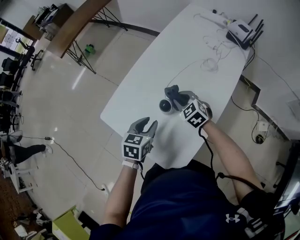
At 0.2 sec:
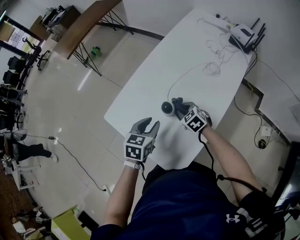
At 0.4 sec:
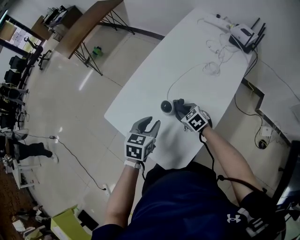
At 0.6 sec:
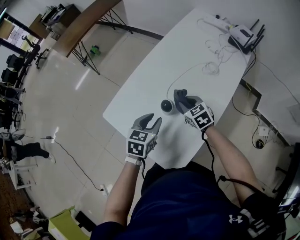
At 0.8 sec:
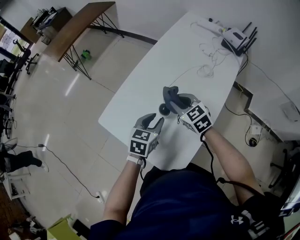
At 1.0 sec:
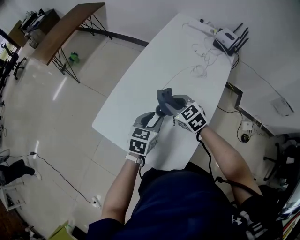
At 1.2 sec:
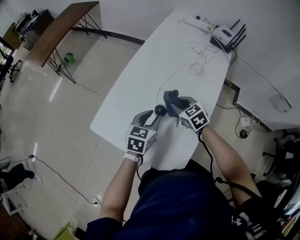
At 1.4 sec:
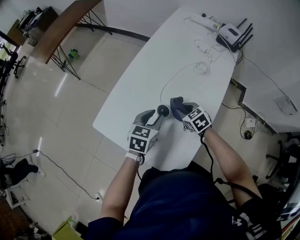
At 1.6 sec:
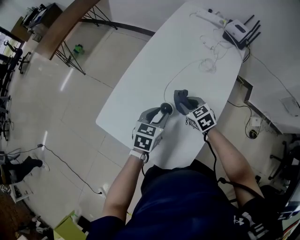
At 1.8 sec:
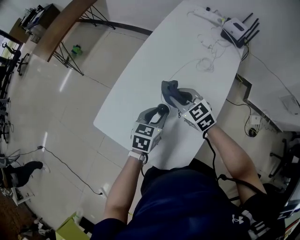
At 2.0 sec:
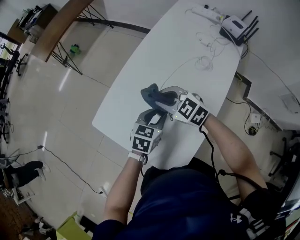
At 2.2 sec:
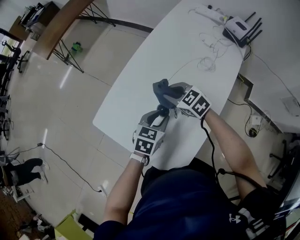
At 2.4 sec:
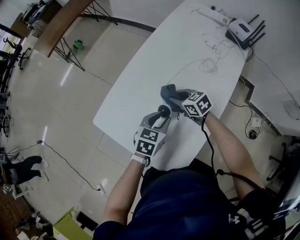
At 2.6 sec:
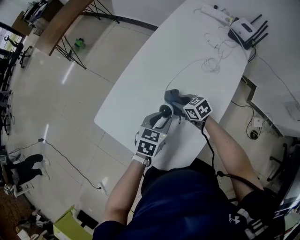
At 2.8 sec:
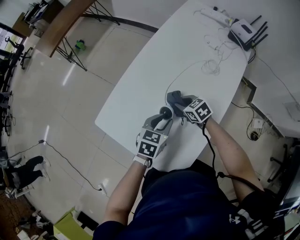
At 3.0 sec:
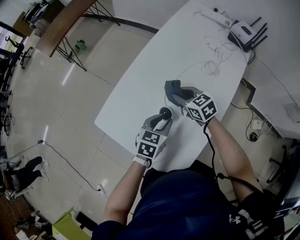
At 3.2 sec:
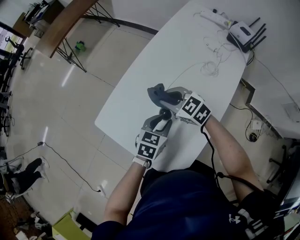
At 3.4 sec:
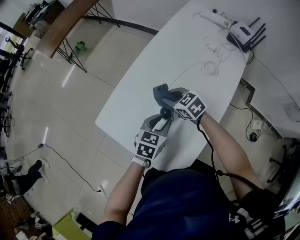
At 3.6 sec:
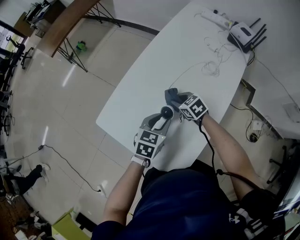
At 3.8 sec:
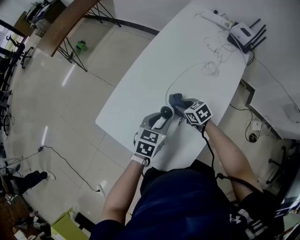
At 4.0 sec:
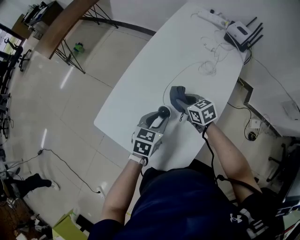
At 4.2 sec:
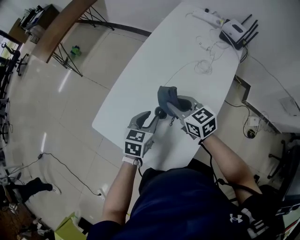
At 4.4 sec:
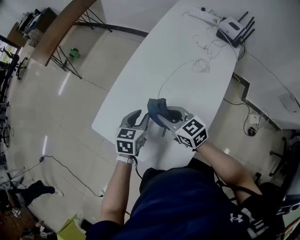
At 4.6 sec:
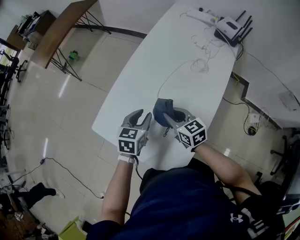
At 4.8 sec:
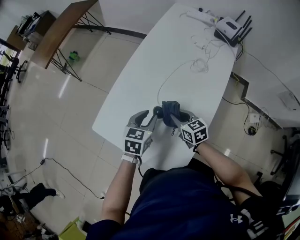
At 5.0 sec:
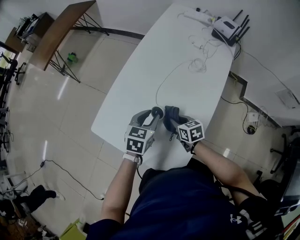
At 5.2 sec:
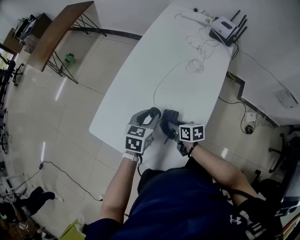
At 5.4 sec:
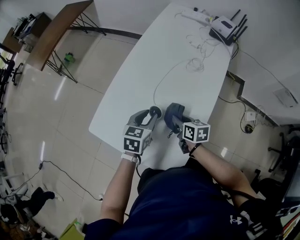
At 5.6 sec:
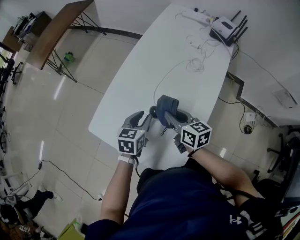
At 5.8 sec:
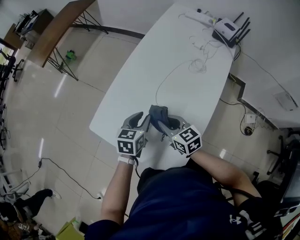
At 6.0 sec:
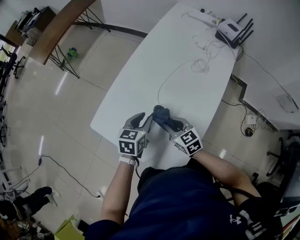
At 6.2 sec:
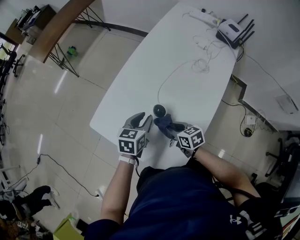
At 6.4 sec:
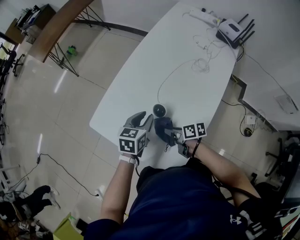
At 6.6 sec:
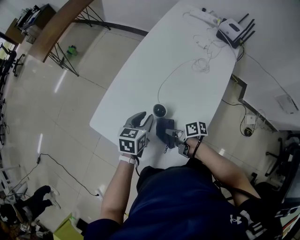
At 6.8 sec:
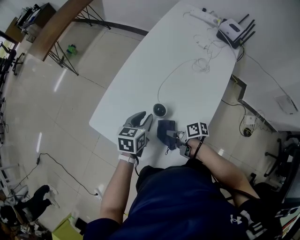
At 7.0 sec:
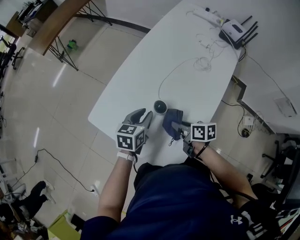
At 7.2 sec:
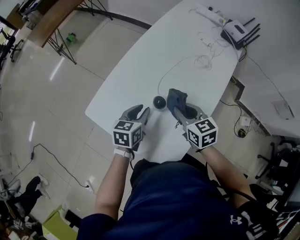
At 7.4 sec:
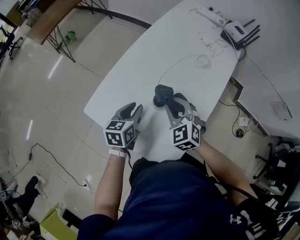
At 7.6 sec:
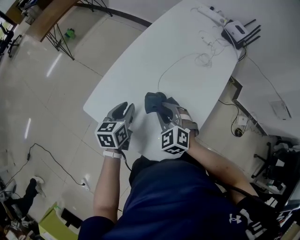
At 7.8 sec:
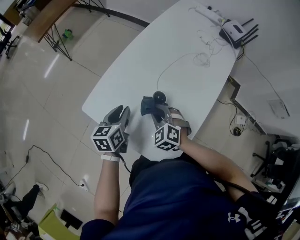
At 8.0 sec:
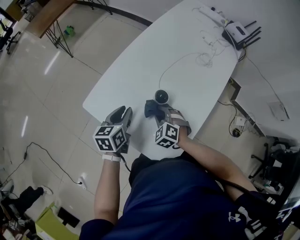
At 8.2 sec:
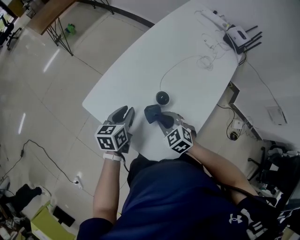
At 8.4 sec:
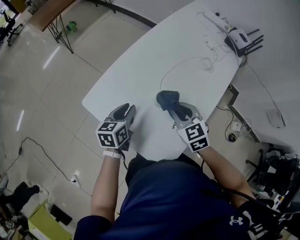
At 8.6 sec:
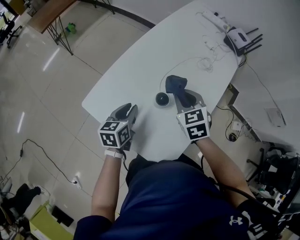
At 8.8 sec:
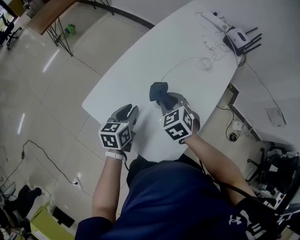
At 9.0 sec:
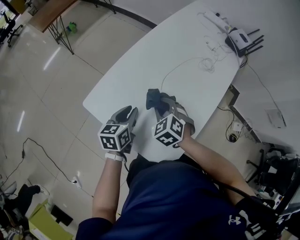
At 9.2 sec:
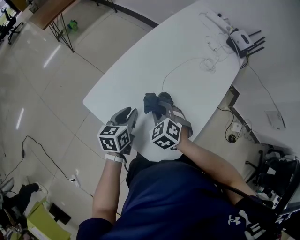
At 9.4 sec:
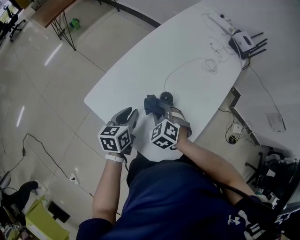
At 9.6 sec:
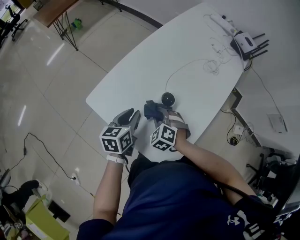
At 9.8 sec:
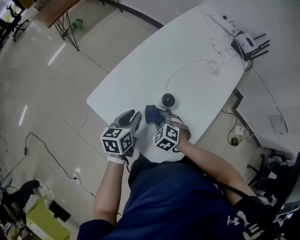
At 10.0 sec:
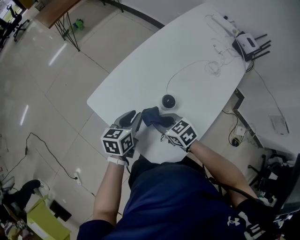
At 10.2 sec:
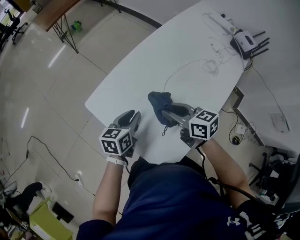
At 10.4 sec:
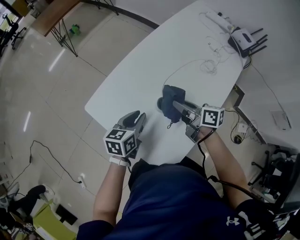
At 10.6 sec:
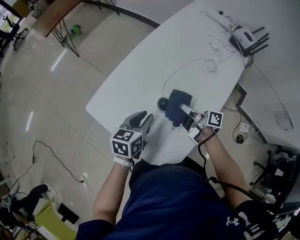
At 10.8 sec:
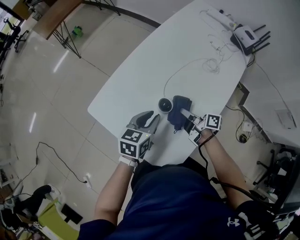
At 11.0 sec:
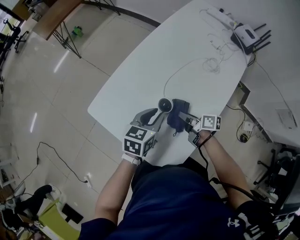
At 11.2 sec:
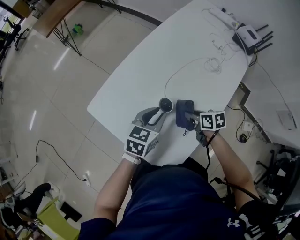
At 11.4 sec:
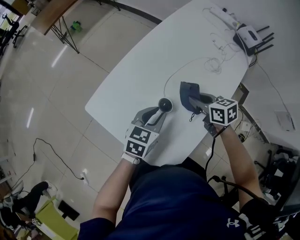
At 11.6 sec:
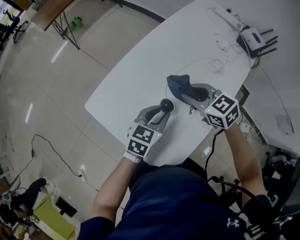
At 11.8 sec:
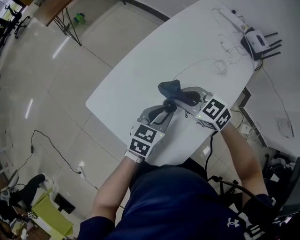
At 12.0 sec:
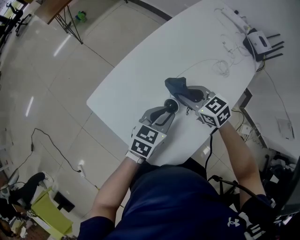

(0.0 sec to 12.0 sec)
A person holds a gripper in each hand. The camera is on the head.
0.0 sec - 1.6 sec: The right gripper goes up and down, some 15 cm each way, reversing 2 times. Meanwhile the left gripper goes approximately 5 cm forward.
1.6 sec - 3.0 sec: The right gripper moves up and down over roughly 15 cm, changing direction 2 times.
3.0 sec - 4.4 sec: The right gripper swings up and down, approximately 15 cm each way, with 2 reversals. Meanwhile the left gripper is displaced to the left by roughly 5 cm.
4.4 sec - 6.0 sec: The right gripper goes up and down, some 15 cm each way, reversing 2 times.
6.0 sec - 7.6 sec: The right gripper heads upward, covering about 5 cm, and turns by about 40 degrees. The left gripper heads to the left, covering some 10 cm.
7.6 sec - 9.0 sec: The right gripper moves up and down over about 15 cm, changing direction 2 times.
9.0 sec - 10.4 sec: The right gripper moves to the right, approximately 10 cm, reaches approximately 10 cm downward, then returns, and rotates around the line of its fingers by roughly 70 degrees, clockwise from behind.
10.4 sec - 12.0 sec: The right gripper swings up and down, some 15 cm each way, with 2 reversals, and rolls counterclockwise, seen from behind, by roughly 50 degrees. Meanwhile the left gripper heads to the right, covering roughly 10 cm.

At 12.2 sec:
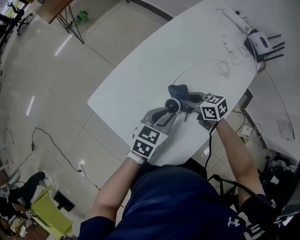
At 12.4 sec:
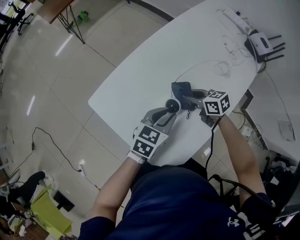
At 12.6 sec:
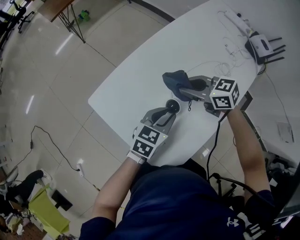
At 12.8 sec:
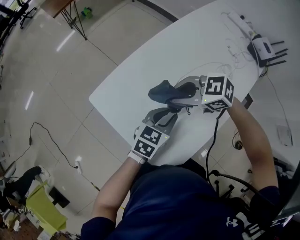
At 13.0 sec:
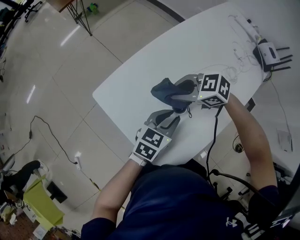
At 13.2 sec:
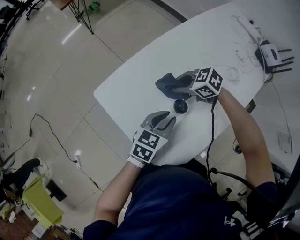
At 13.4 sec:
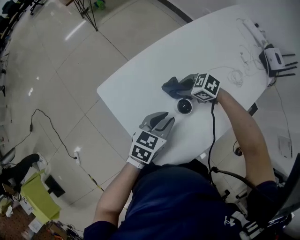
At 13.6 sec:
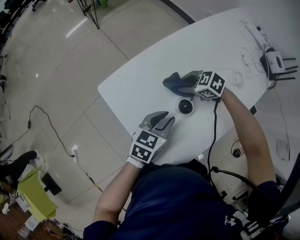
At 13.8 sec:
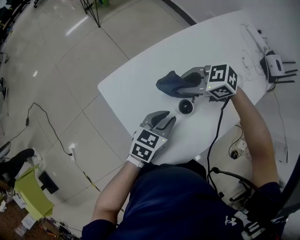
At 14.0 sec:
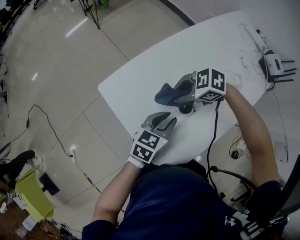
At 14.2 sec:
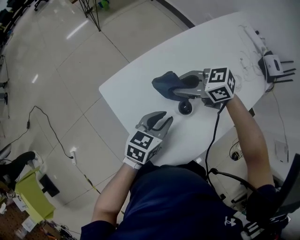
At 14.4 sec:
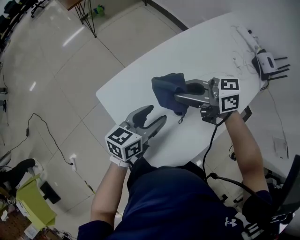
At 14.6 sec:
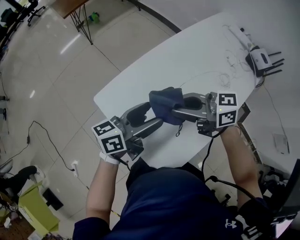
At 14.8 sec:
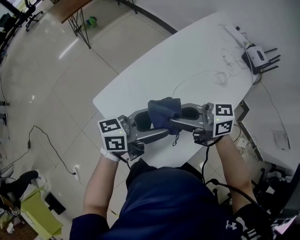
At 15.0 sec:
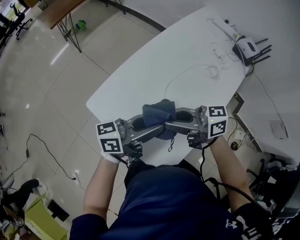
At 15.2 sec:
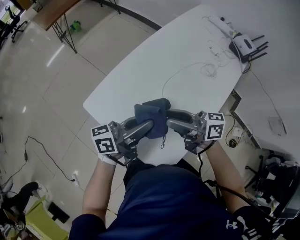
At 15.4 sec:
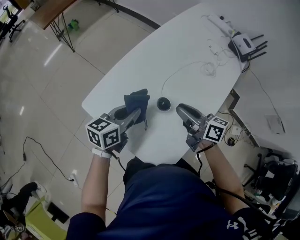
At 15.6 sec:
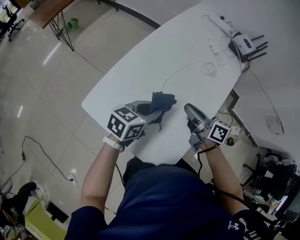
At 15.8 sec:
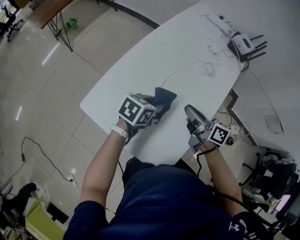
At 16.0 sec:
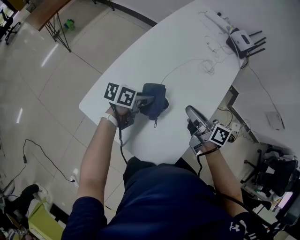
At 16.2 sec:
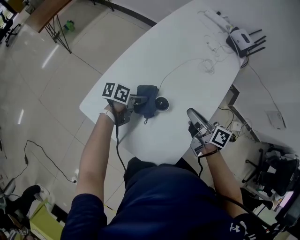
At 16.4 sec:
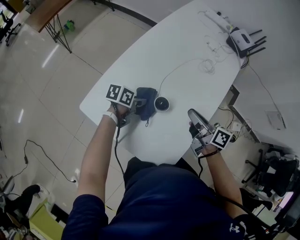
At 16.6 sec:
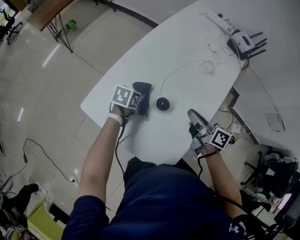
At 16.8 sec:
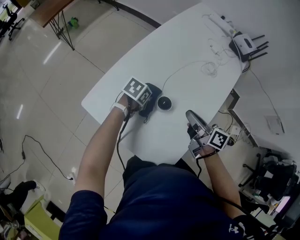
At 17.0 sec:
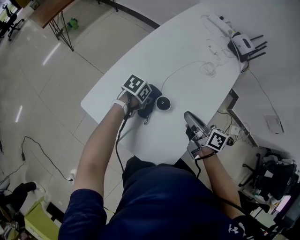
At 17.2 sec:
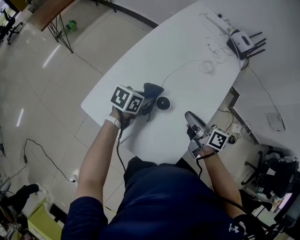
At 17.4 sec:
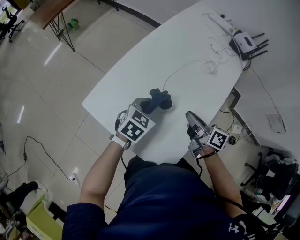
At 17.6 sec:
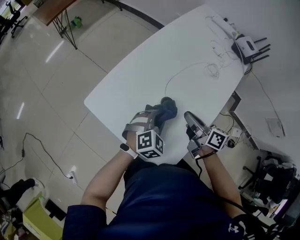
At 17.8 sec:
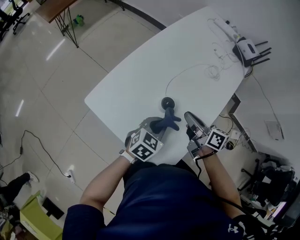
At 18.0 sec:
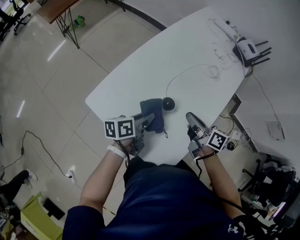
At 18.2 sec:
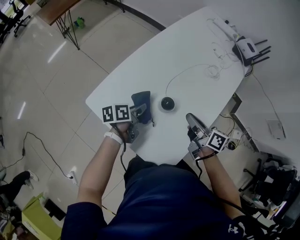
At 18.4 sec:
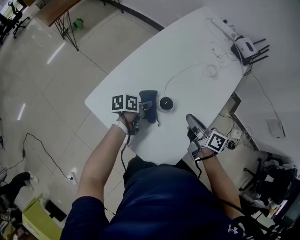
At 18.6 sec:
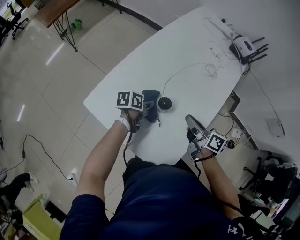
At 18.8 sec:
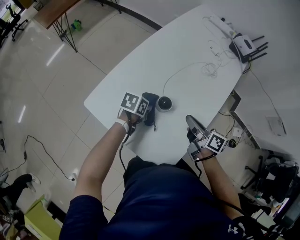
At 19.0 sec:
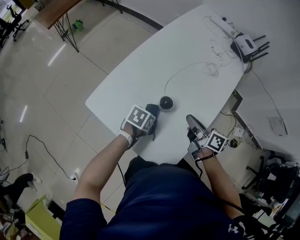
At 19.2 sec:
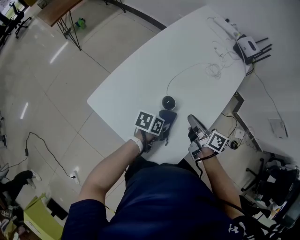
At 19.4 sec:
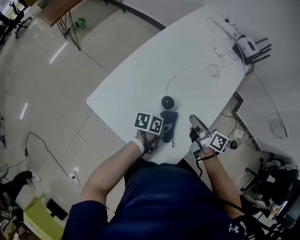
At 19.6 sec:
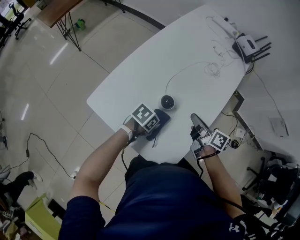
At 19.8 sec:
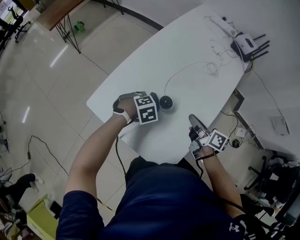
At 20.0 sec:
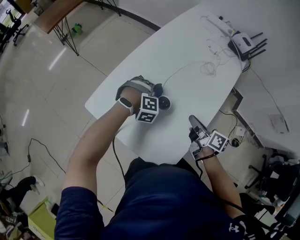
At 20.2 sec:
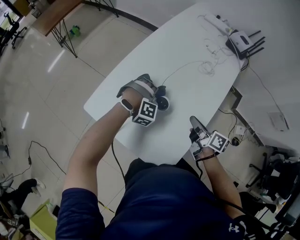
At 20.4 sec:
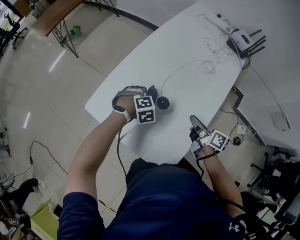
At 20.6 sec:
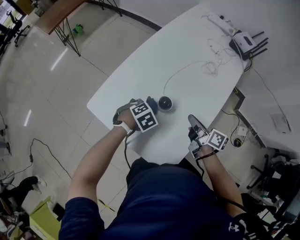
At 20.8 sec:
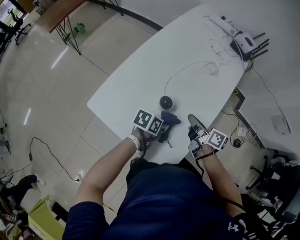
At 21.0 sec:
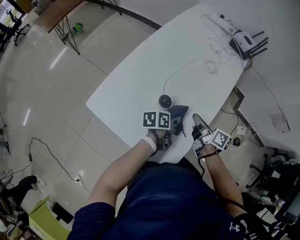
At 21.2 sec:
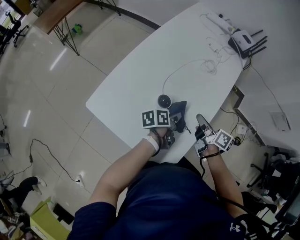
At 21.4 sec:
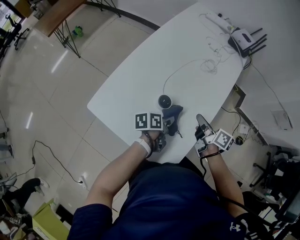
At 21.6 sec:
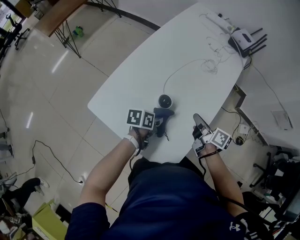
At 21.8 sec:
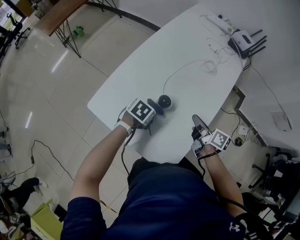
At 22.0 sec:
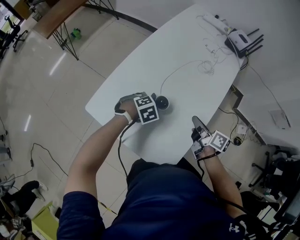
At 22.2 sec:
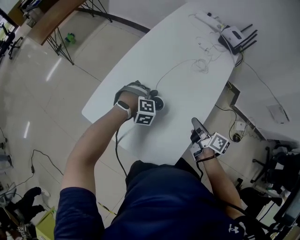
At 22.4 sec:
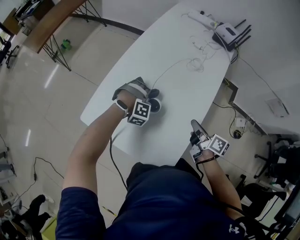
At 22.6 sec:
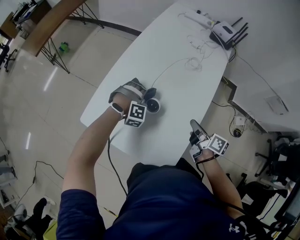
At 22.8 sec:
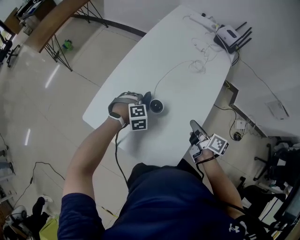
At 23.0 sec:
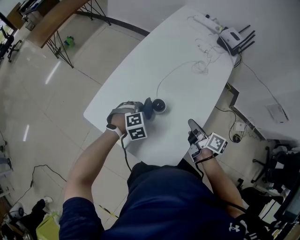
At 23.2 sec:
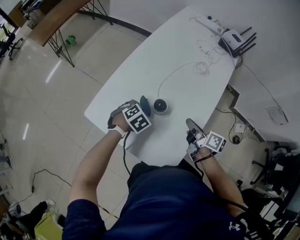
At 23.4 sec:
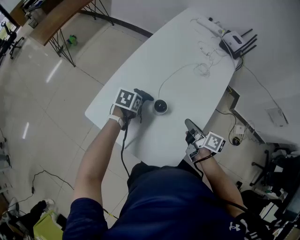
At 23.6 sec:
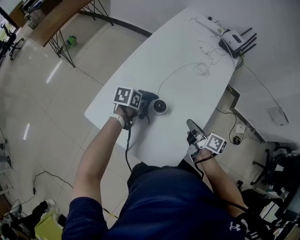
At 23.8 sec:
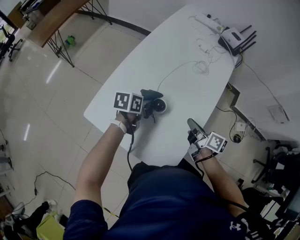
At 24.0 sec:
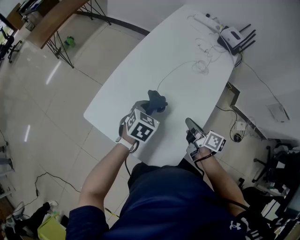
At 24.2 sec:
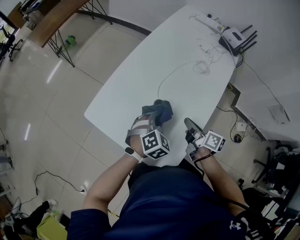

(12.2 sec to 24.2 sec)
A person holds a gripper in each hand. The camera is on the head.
12.2 sec - 13.8 sec: The left gripper ends up about 5 cm from where it was. The right gripper moves up and down over roughly 15 cm, changing direction 2 times, and changes its angle by about 50 degrees.
13.8 sec - 15.2 sec: The left gripper heads upward, covering about 15 cm, points its fingers about 40 degrees further upward, and opens and closes again. Meanwhile the right gripper ends up approximately 15 cm from where it was, angles its fingers upward, by some 40 degrees, and opens up.
15.2 sec - 16.6 sec: The right gripper changes place by approximately 15 cm, changes its angle by roughly 40 degrees, and closes its fingers; the left gripper travels downward by roughly 20 cm, and tips its fingers downward by approximately 60 degrees.
16.6 sec - 18.2 sec: The left gripper reaches approximately 10 cm upward, then returns, and rotates approximately 40 degrees.
18.2 sec - 19.8 sec: The left gripper twists approximately 90 degrees clockwise, seen from behind.
19.8 sec - 21.2 sec: The right gripper changes place by roughly 5 cm; the left gripper moves approximately 15 cm, and twists approximately 90 degrees counterclockwise, seen from behind.
21.2 sec - 22.6 sec: The left gripper changes place by about 15 cm, and twists about 150 degrees clockwise, seen from behind.
22.6 sec - 24.2 sec: The right gripper heads to the left, covering roughly 5 cm, while the left gripper goes about 15 cm backward, upward and to the right, and rolls counterclockwise, seen from behind, by roughly 60 degrees.
